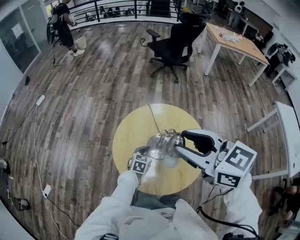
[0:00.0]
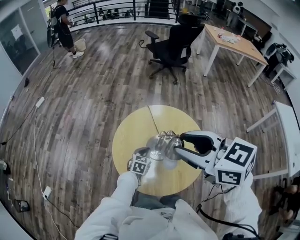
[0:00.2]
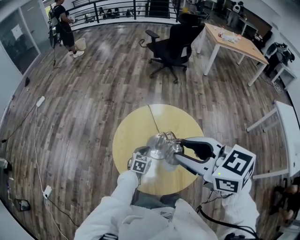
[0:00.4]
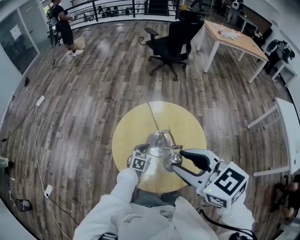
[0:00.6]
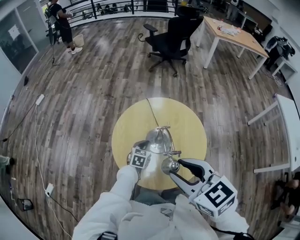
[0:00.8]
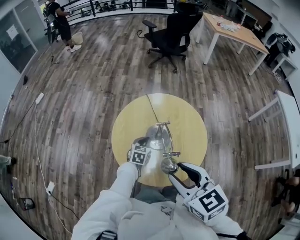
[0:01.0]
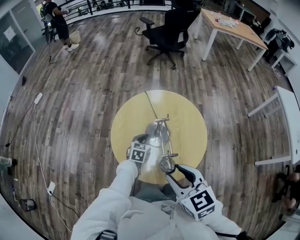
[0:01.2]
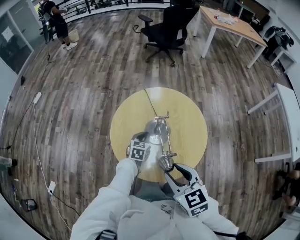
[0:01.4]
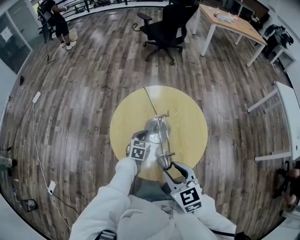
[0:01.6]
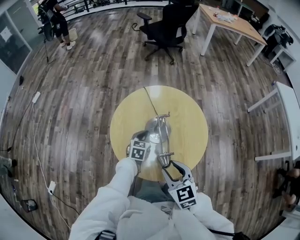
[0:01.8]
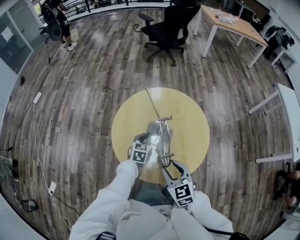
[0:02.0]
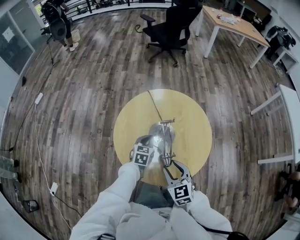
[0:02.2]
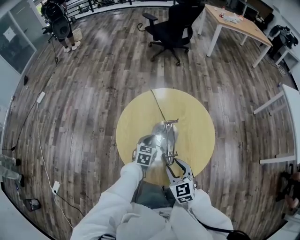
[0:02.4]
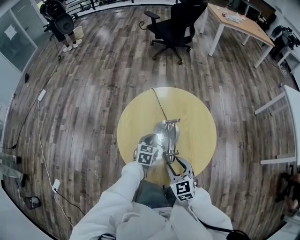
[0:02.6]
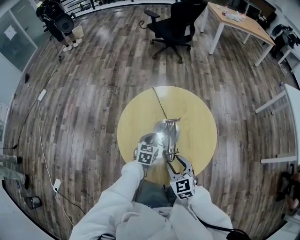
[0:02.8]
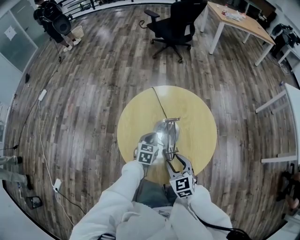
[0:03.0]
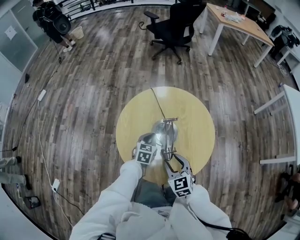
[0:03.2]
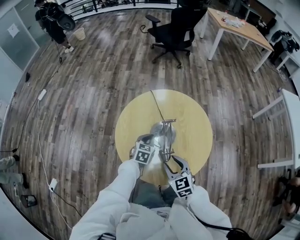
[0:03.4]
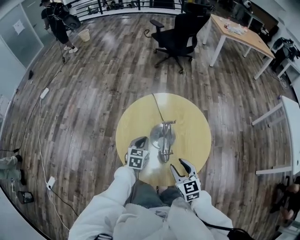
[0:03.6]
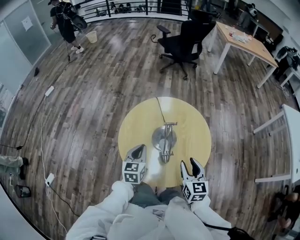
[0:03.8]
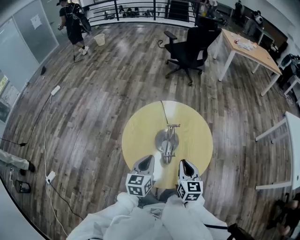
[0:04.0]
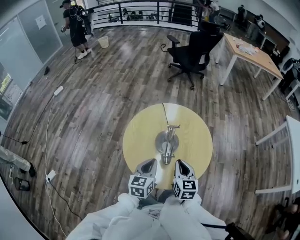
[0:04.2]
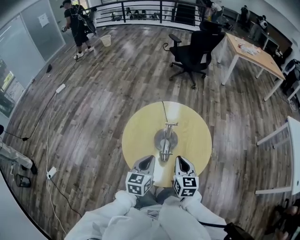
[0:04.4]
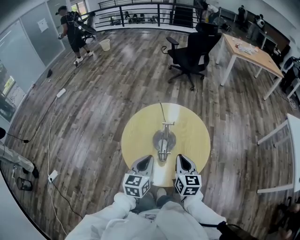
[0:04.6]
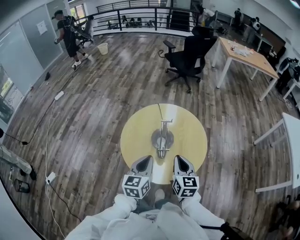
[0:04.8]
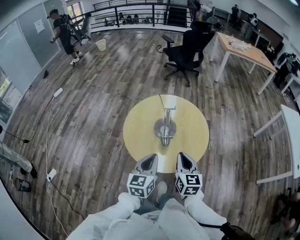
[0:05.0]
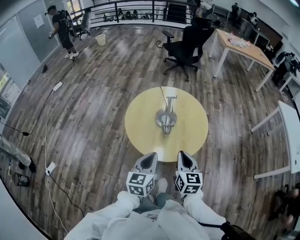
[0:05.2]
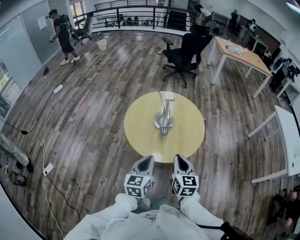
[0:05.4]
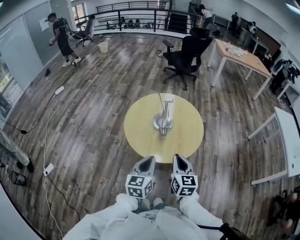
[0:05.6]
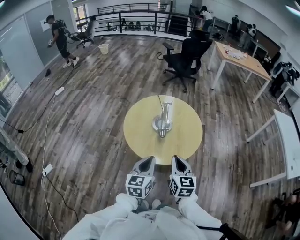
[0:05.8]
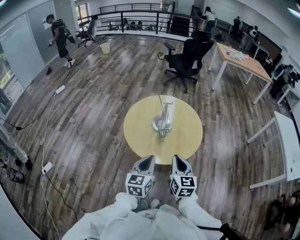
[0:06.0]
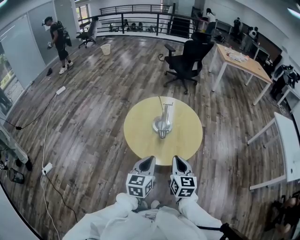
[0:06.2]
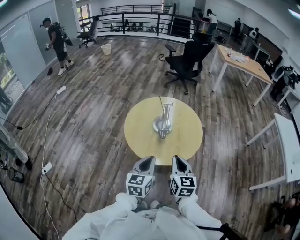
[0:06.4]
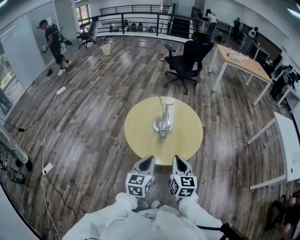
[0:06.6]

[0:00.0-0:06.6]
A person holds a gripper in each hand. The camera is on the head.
0.0 to 1.6 s: The right gripper heads downward and backward, covering some 25 cm, and turns by about 30 degrees.
1.6 to 3.2 s: The right gripper travels downward and forward by some 15 cm.
3.2 to 5.0 s: The left gripper travels backward and upward by some 30 cm, and turns by approximately 30 degrees, while the right gripper travels upward, backward and to the right by approximately 15 cm, changes its angle by approximately 30 degrees, and closes up.
5.0 to 6.6 s: The grippers both shift backward by some 10 cm.

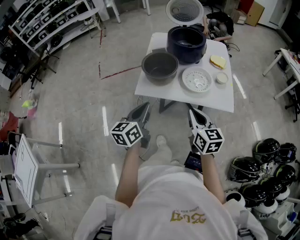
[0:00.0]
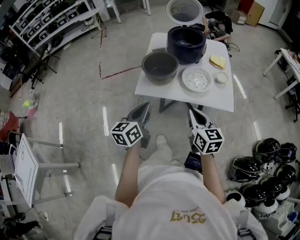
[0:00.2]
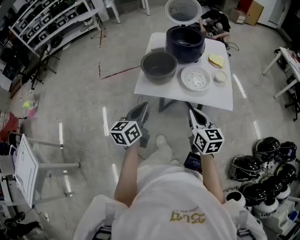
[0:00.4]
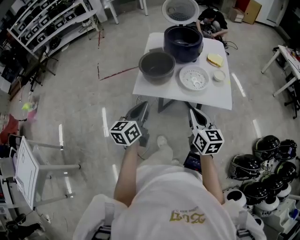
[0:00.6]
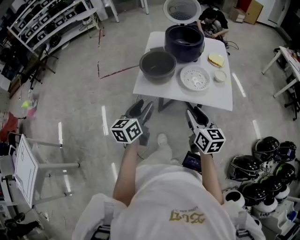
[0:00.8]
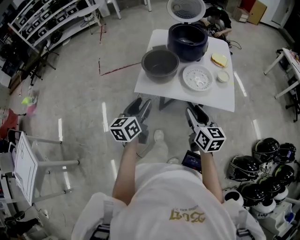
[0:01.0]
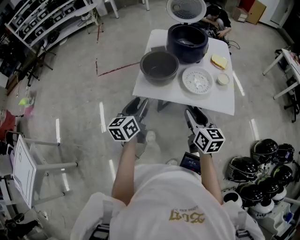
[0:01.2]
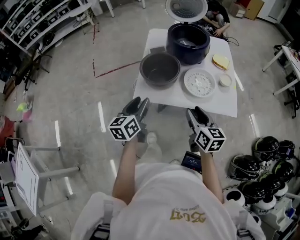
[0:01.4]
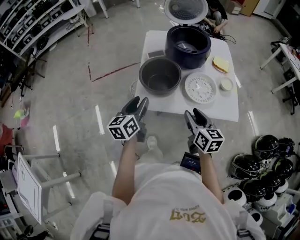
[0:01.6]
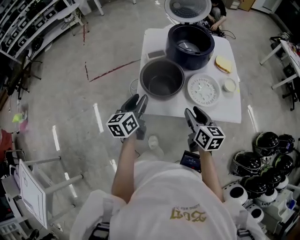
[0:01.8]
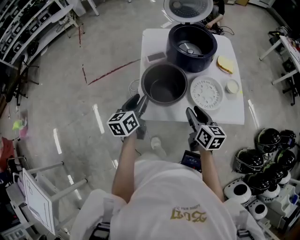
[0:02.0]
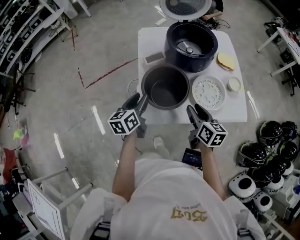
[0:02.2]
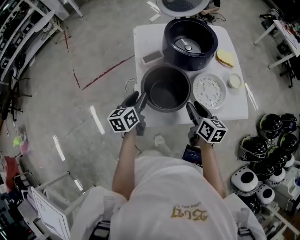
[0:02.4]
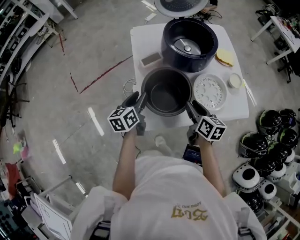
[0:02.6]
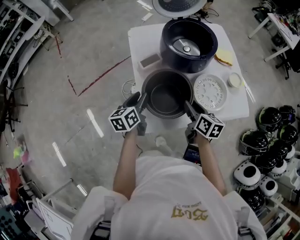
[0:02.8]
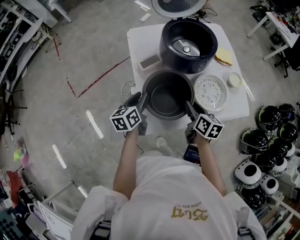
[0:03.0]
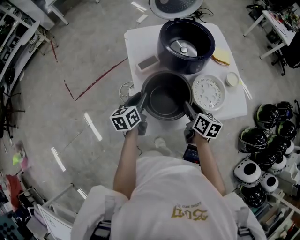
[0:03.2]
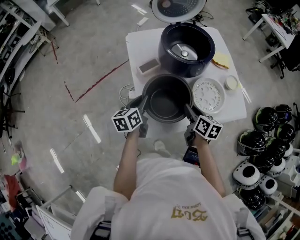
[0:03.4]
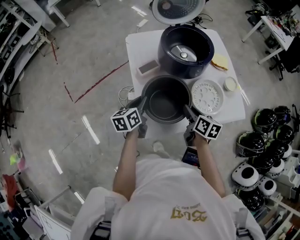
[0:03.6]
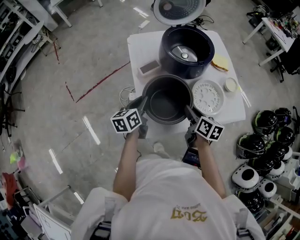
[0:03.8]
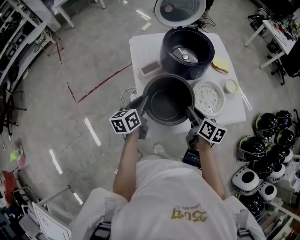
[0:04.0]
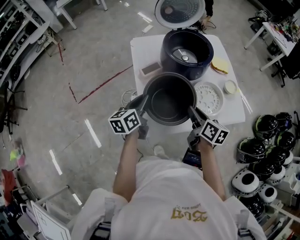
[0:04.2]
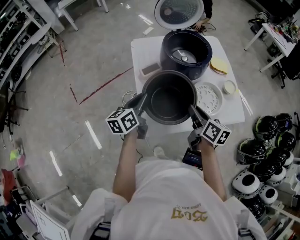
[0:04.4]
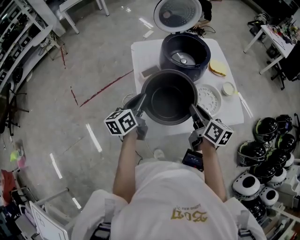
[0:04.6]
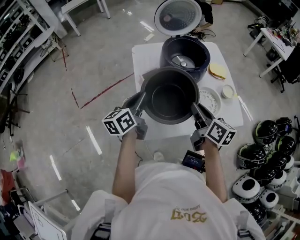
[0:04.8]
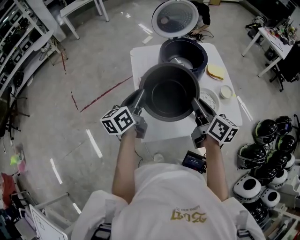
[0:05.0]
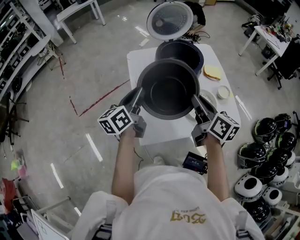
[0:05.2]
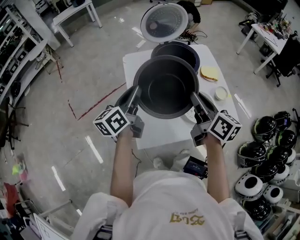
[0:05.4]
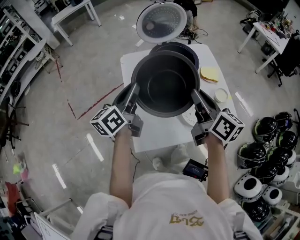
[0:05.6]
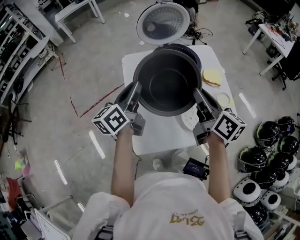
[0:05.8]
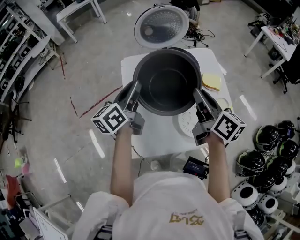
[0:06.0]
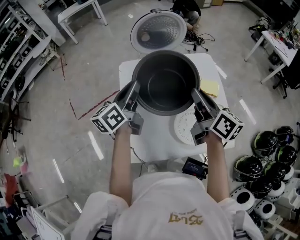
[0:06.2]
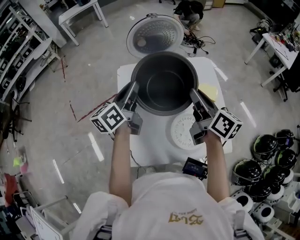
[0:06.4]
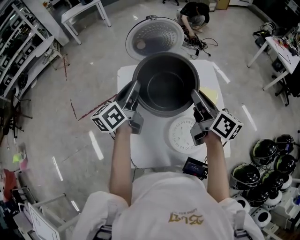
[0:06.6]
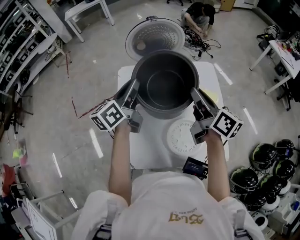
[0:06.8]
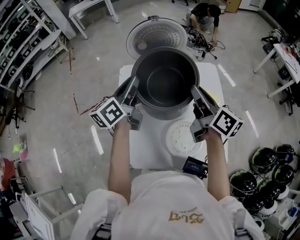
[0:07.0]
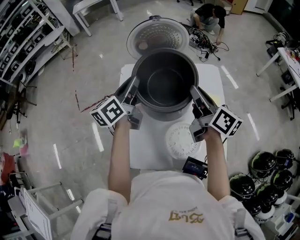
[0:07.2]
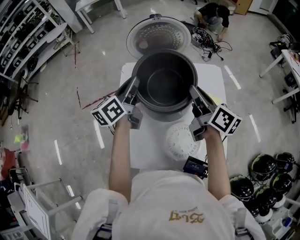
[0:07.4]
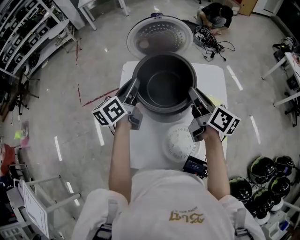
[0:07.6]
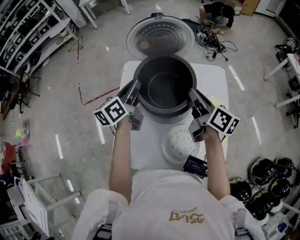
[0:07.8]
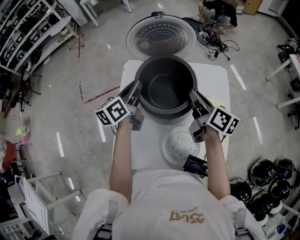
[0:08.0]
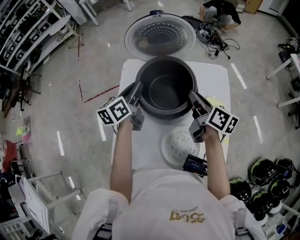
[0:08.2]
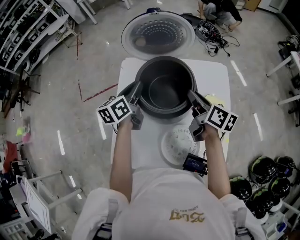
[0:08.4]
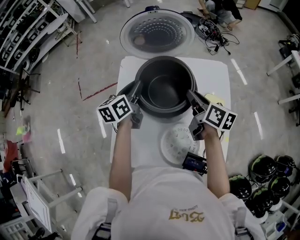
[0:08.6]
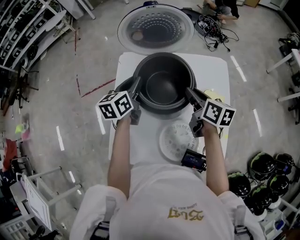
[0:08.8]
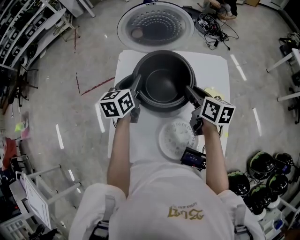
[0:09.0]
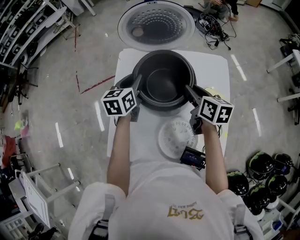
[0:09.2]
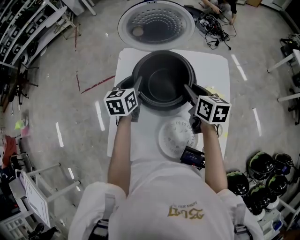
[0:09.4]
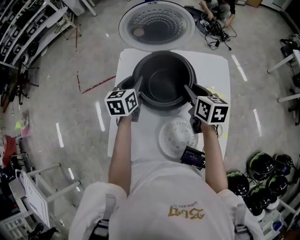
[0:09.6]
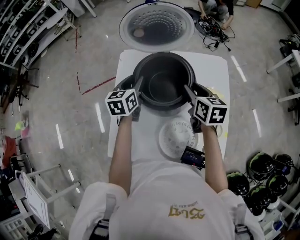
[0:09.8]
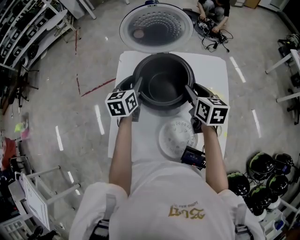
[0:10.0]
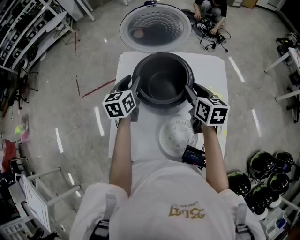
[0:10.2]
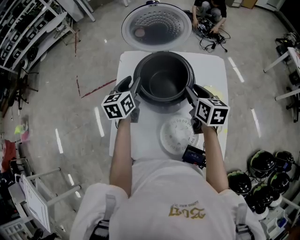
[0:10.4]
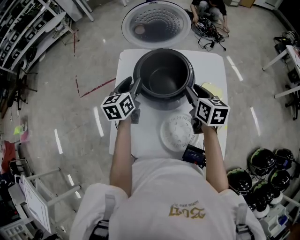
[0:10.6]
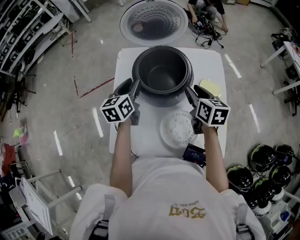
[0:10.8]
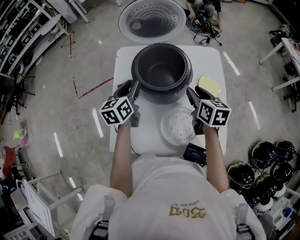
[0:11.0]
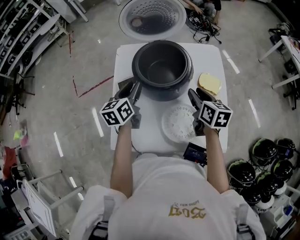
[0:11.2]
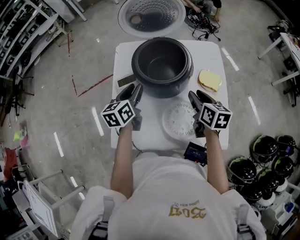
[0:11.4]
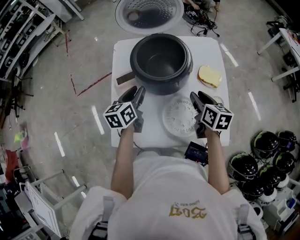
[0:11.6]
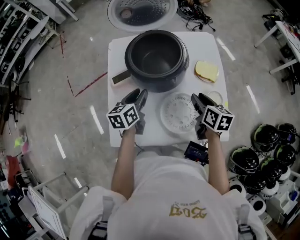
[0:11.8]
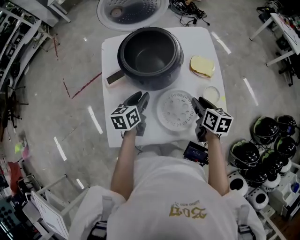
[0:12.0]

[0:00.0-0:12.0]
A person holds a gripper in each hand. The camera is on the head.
0.0 to 1.6 s: Both grippers travel together forward, some 15 cm. The left gripper opens up, while the right gripper opens its fingers.
1.6 to 3.0 s: The right gripper shifts approximately 20 cm forward, downward and to the left, and turns by roughly 30 degrees, while the left gripper goes roughly 25 cm forward and downward, and changes its angle by about 20 degrees.
3.0 to 4.4 s: The two grippers go roughly 10 cm upward.
4.4 to 6.0 s: Both grippers move upward, forward and to the right, roughly 20 cm.
6.0 to 7.6 s: Both grippers move forward and to the right, roughly 15 cm.
7.6 to 9.0 s: The grippers both shift downward by about 10 cm. The left gripper changes its angle by some 20 degrees. Meanwhile the right gripper swivels about 20 degrees.
9.0 to 10.4 s: The grippers move only a little.
10.4 to 12.0 s: The right gripper goes approximately 20 cm backward and downward, and swivels approximately 20 degrees. The left gripper shifts approximately 20 cm backward, downward and to the right, and turns by about 20 degrees.

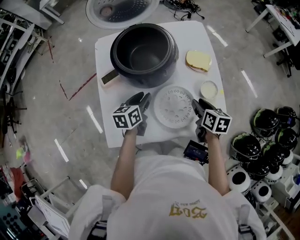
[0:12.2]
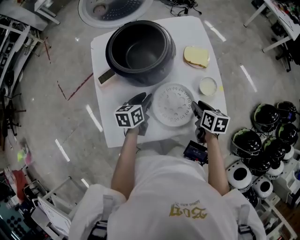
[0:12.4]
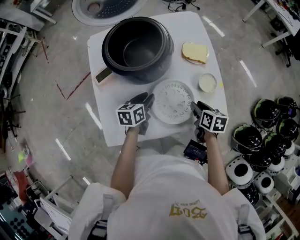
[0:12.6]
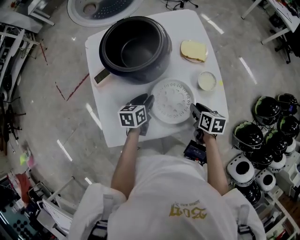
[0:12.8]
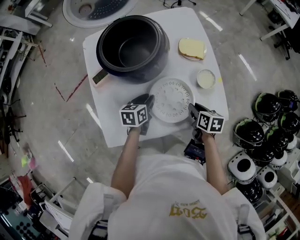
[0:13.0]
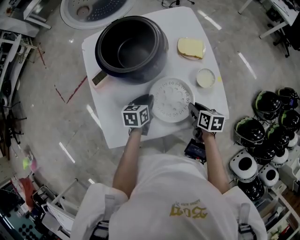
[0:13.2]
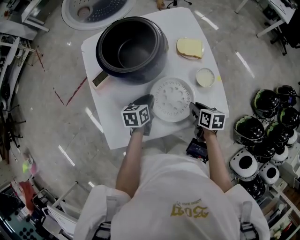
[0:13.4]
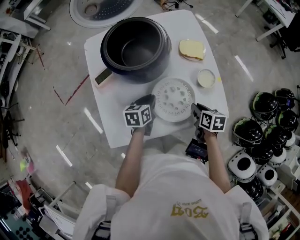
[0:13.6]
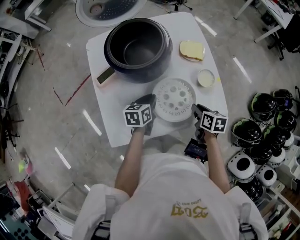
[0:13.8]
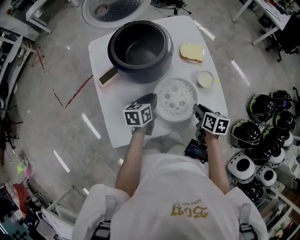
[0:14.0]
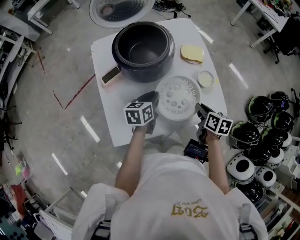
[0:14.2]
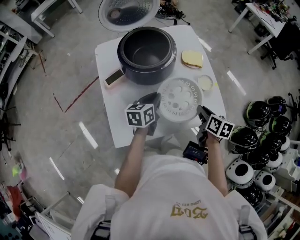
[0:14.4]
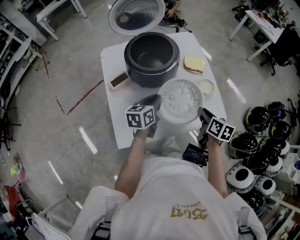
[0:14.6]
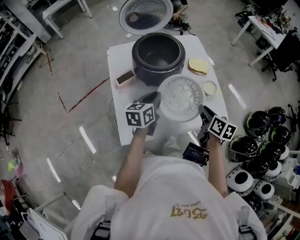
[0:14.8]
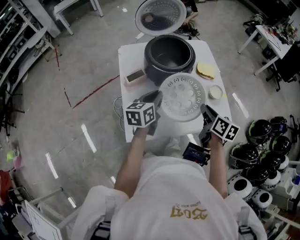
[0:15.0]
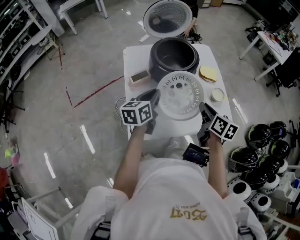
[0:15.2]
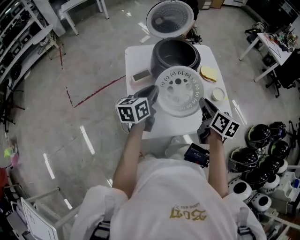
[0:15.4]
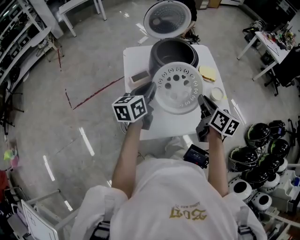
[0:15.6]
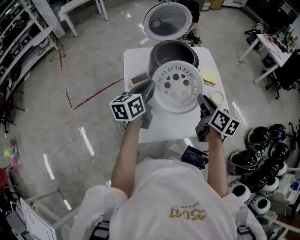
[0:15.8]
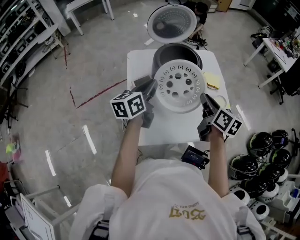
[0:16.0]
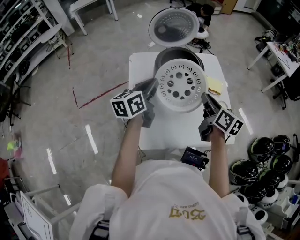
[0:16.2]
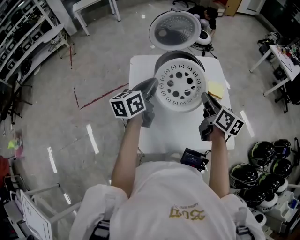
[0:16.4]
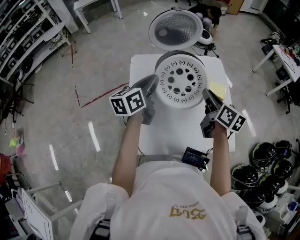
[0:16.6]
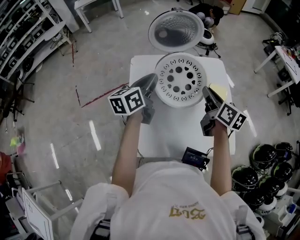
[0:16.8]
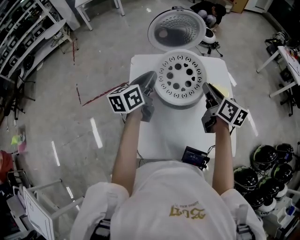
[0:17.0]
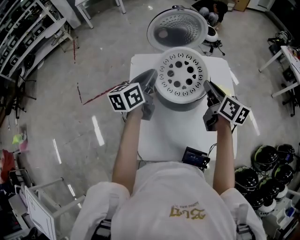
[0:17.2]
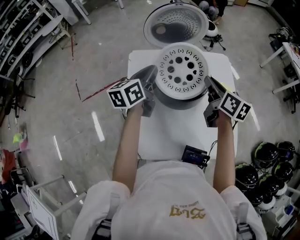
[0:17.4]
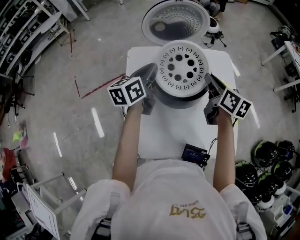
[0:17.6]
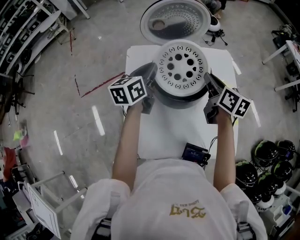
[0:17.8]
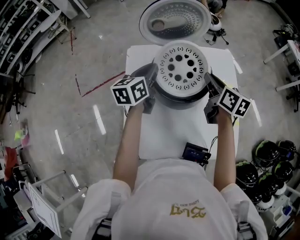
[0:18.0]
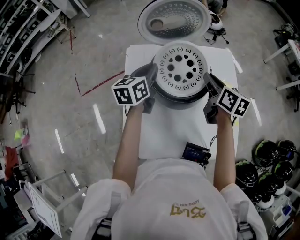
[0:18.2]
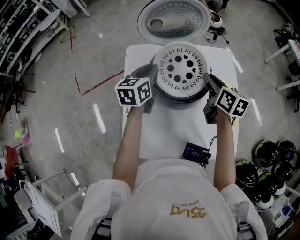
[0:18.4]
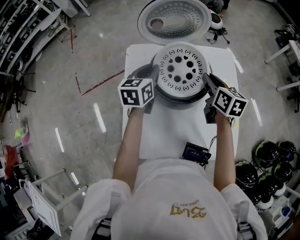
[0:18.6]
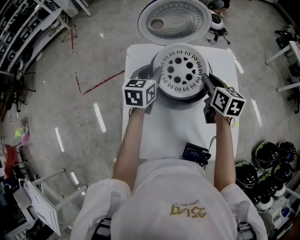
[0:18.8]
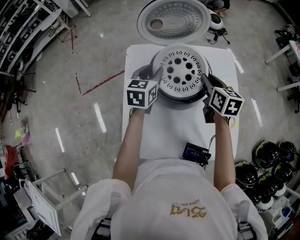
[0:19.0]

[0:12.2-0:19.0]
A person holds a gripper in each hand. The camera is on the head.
12.2 to 13.6 s: The left gripper shifts some 5 cm downward, and closes its fingers, while the right gripper is displaced backward and downward by about 10 cm, and closes up.
13.6 to 15.0 s: Both grippers move upward and to the left, approximately 20 cm. The left gripper changes its angle by approximately 20 degrees. The right gripper changes its angle by approximately 20 degrees.
15.0 to 16.2 s: The right gripper travels upward, forward and to the left by approximately 15 cm; the left gripper moves upward, to the left and forward, approximately 10 cm.
16.2 to 17.6 s: The two grippers go about 15 cm forward.
17.6 to 19.0 s: The left gripper ends up about 5 cm from where it was, changes its angle by roughly 30 degrees, and opens.
